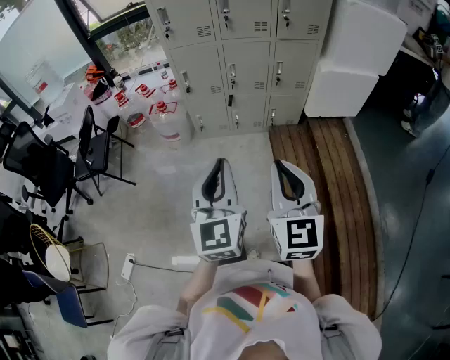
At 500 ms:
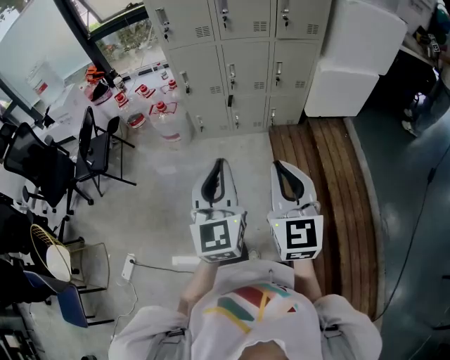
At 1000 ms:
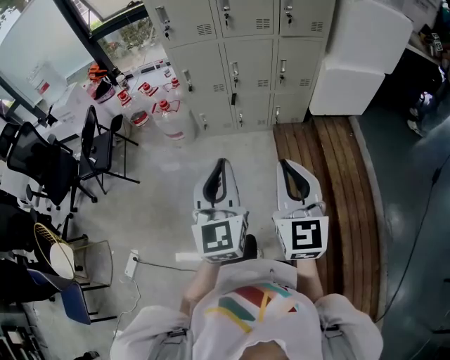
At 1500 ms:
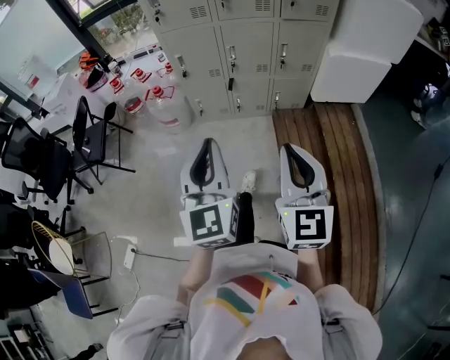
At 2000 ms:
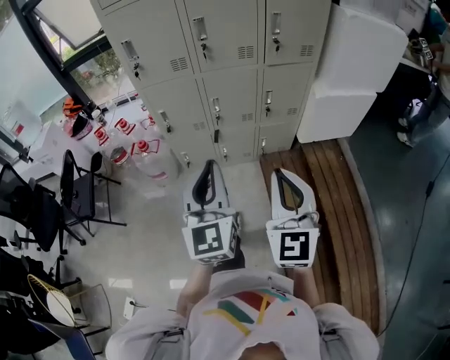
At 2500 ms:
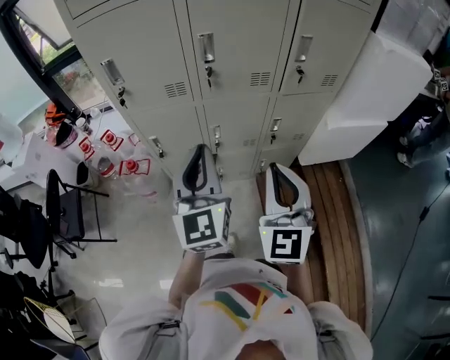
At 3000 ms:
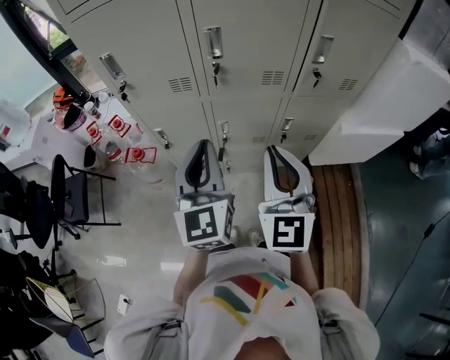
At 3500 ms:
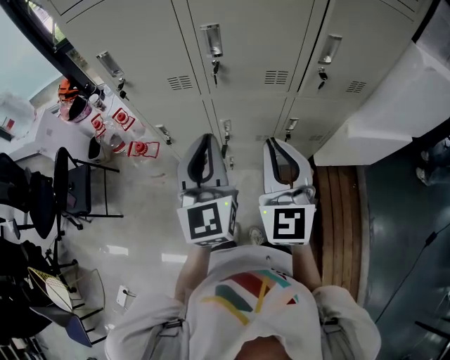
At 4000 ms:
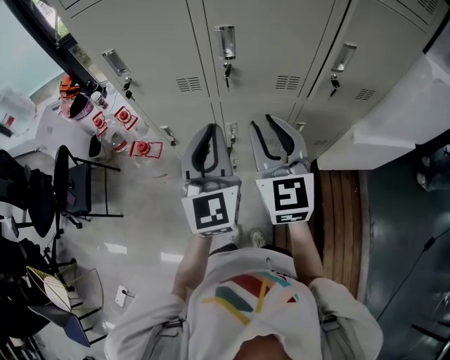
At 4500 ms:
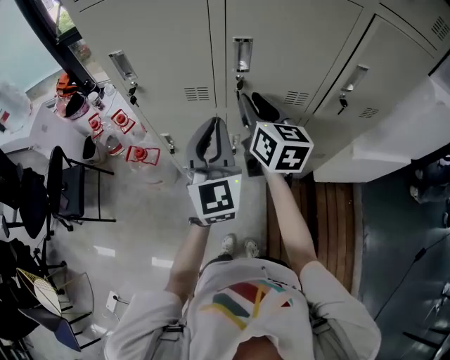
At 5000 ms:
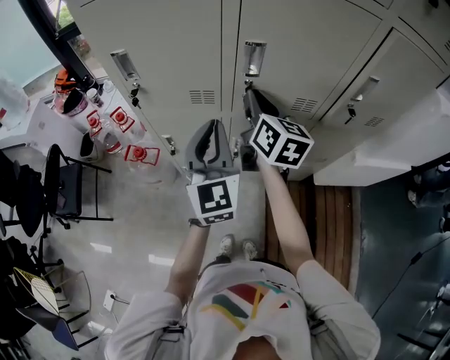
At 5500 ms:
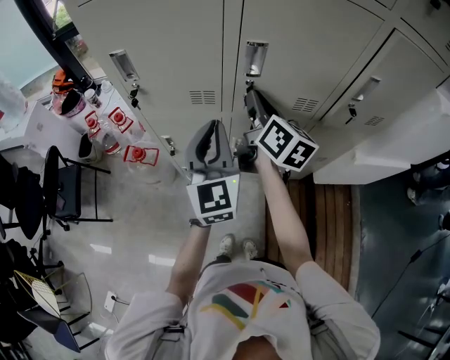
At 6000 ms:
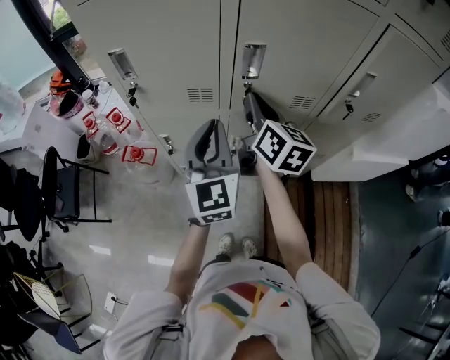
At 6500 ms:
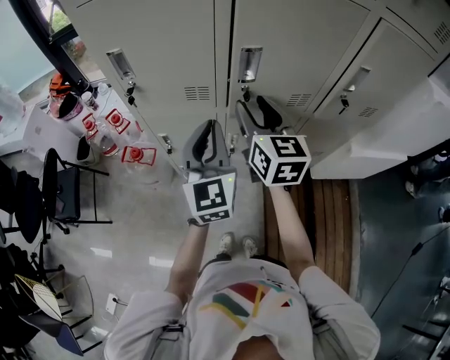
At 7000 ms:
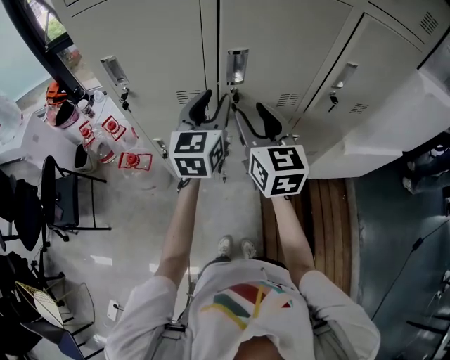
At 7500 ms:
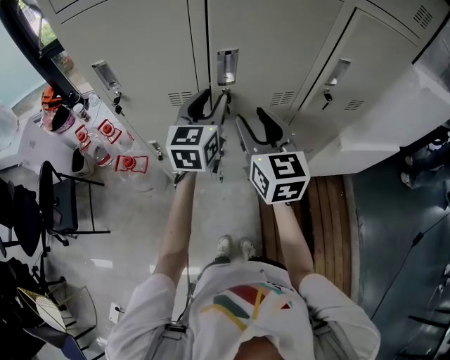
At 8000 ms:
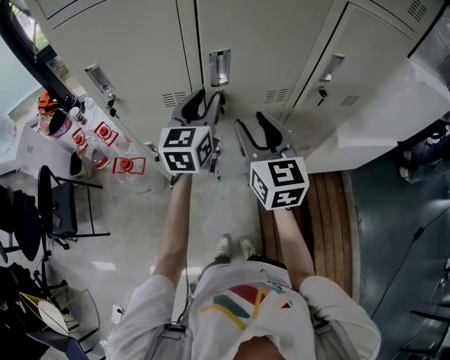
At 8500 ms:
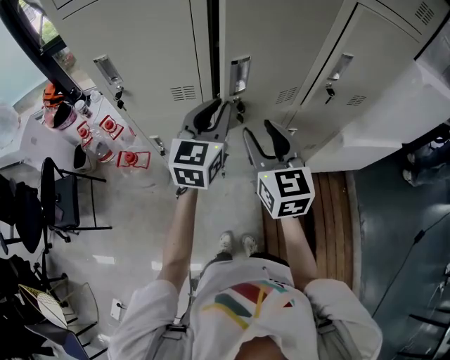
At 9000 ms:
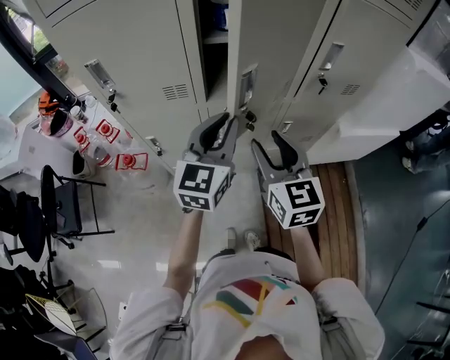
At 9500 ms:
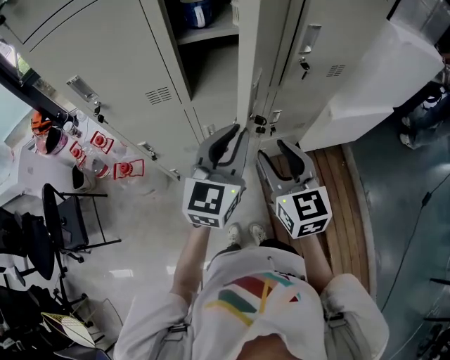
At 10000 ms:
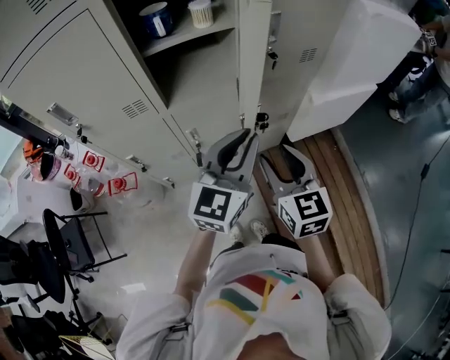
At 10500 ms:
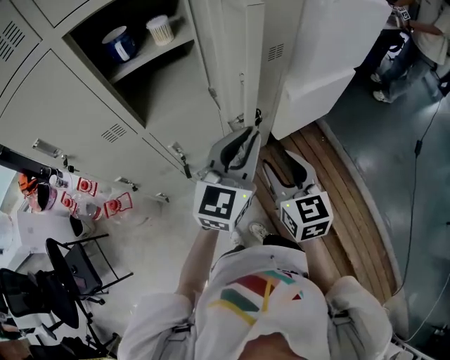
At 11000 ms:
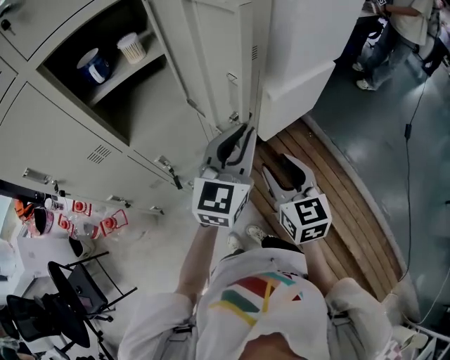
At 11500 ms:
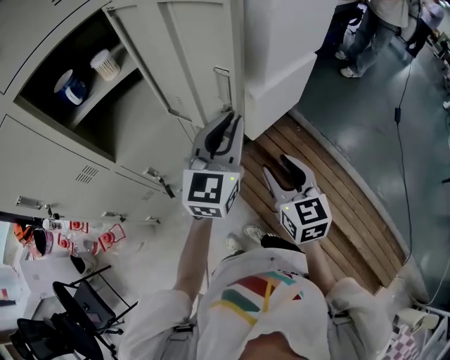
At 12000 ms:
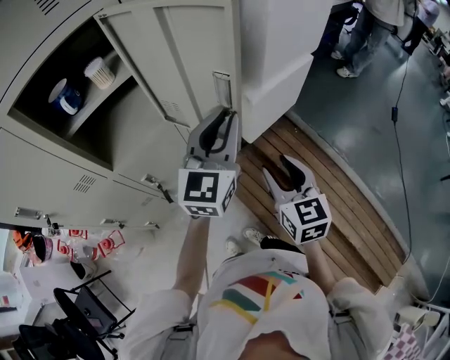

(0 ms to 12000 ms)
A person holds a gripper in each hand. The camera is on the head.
0 ms - 2000 ms: The grippers both shift forward by approximately 20 cm.
2000 ms - 4000 ms: Both grippers travel together forward, some 35 cm. The right gripper opens.
4000 ms - 6000 ms: The right gripper heads forward, covering about 15 cm, and swivels roughly 40 degrees, while the left gripper travels forward by about 10 cm.
6000 ms - 8000 ms: The right gripper travels backward by some 10 cm, turns by about 30 degrees, and opens up. Meanwhile the left gripper heads forward and to the right, covering about 10 cm, rotates approximately 20 degrees, and opens its fingers.
8000 ms - 10000 ms: The right gripper moves to the right, backward and downward, about 20 cm, while the left gripper travels to the right and backward by roughly 25 cm, and swivels about 30 degrees.
10000 ms - 12000 ms: The left gripper shifts approximately 15 cm to the right and forward. Meanwhile the right gripper goes some 15 cm to the right, and turns by roughly 20 degrees.

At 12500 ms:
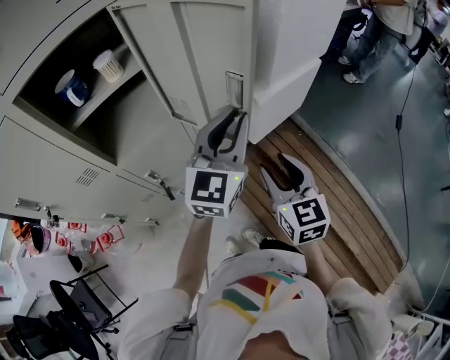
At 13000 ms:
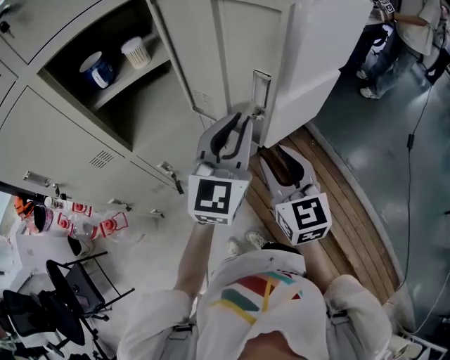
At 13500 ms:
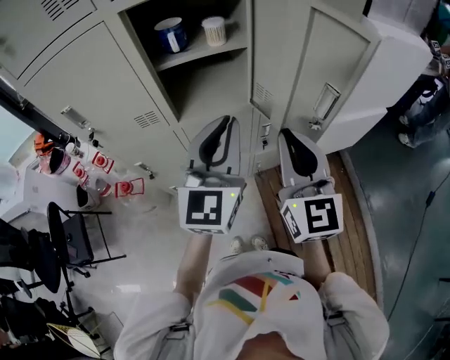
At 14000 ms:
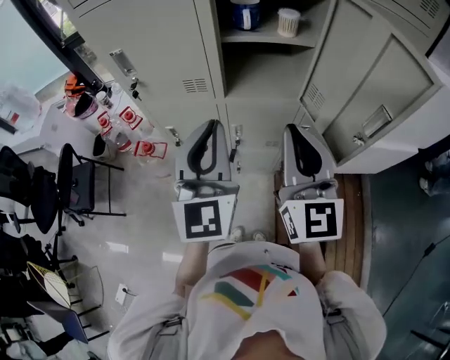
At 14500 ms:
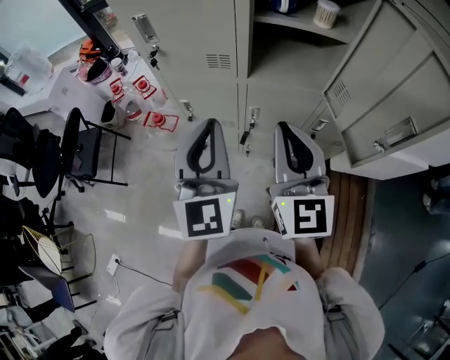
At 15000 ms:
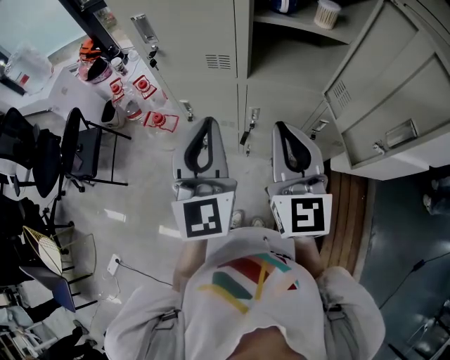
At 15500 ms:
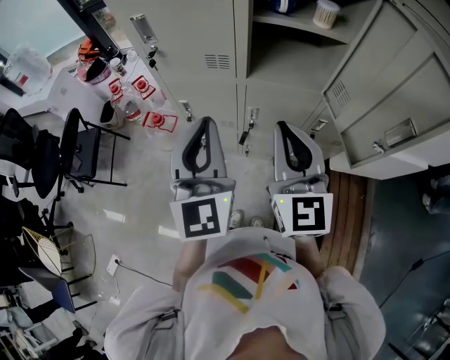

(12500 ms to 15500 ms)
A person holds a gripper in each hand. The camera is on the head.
12500 ms - 14000 ms: The left gripper ends up about 30 cm from where it was, and changes its angle by some 60 degrees; the right gripper ends up approximately 25 cm from where it was, turns by approximately 40 degrees, and closes up.
14000 ms - 15500 ms: Both grippers move to the left, some 5 cm.

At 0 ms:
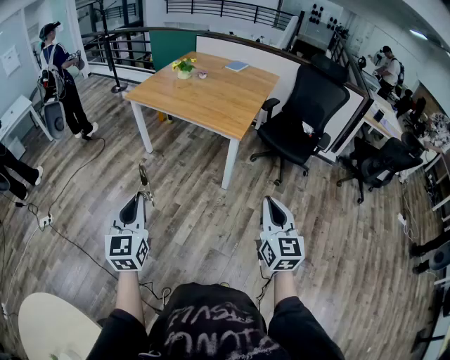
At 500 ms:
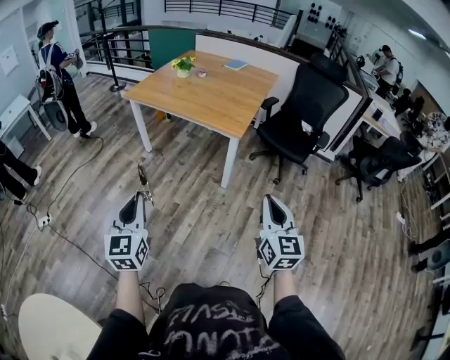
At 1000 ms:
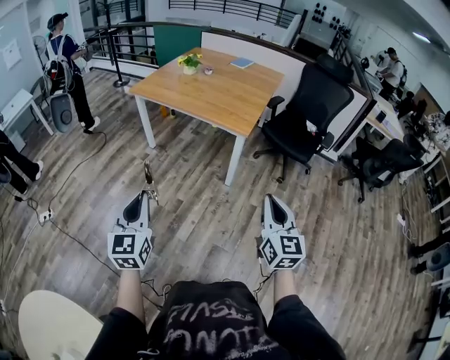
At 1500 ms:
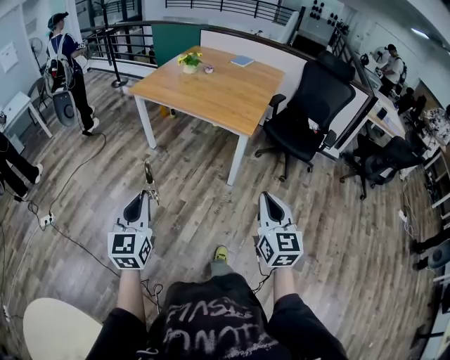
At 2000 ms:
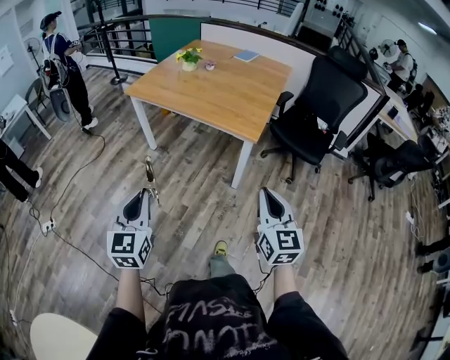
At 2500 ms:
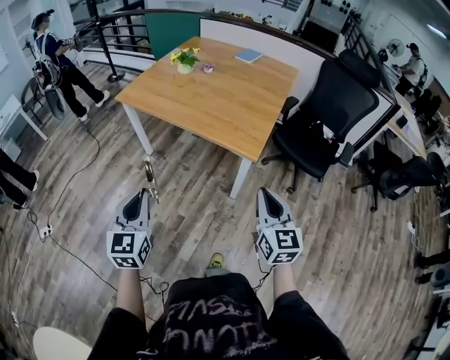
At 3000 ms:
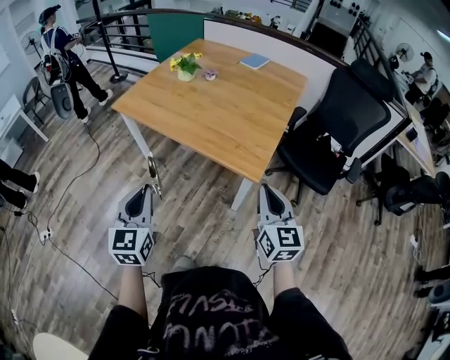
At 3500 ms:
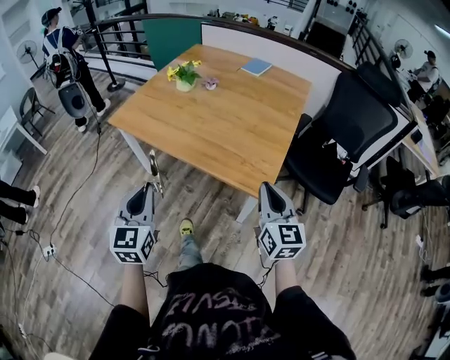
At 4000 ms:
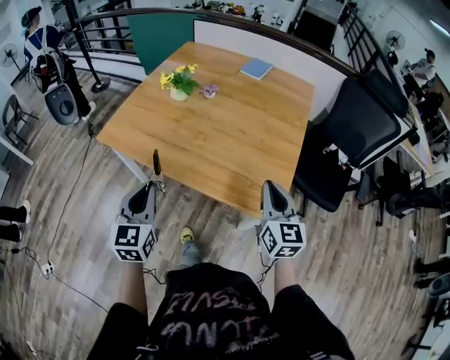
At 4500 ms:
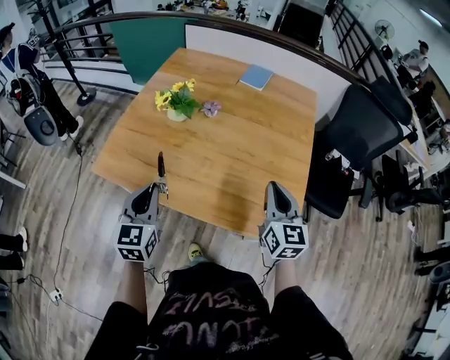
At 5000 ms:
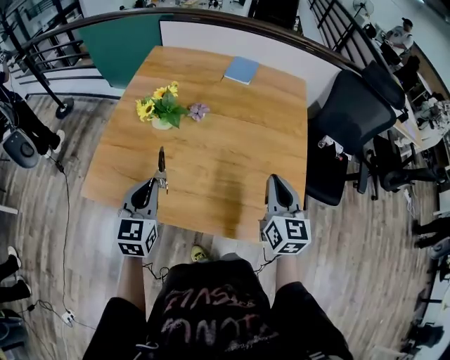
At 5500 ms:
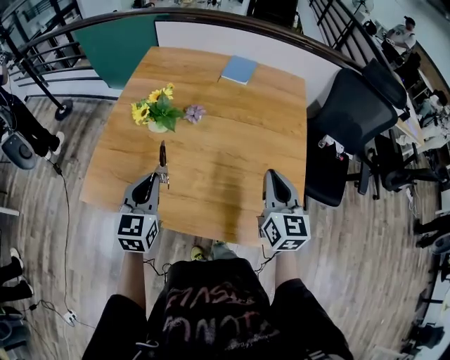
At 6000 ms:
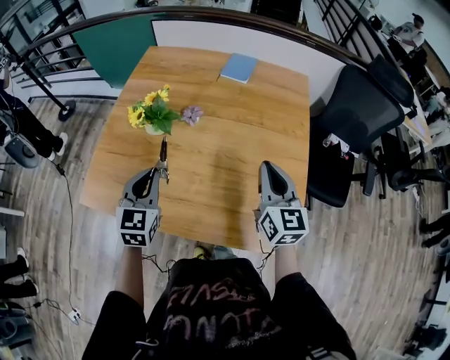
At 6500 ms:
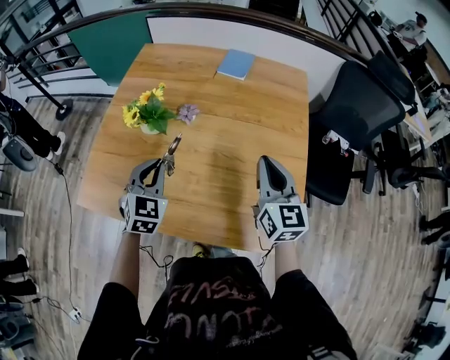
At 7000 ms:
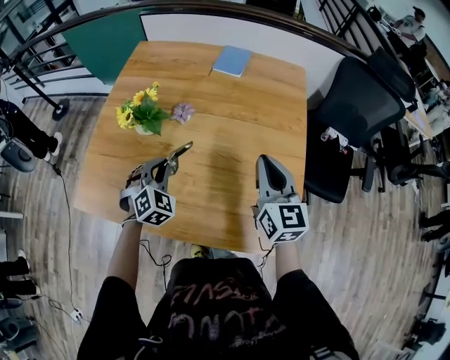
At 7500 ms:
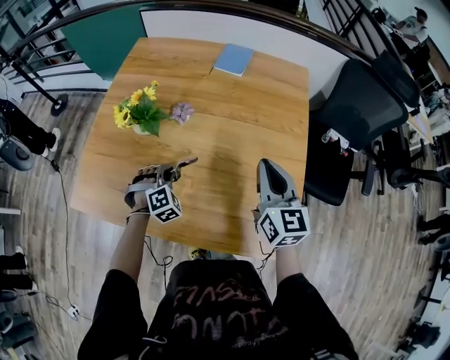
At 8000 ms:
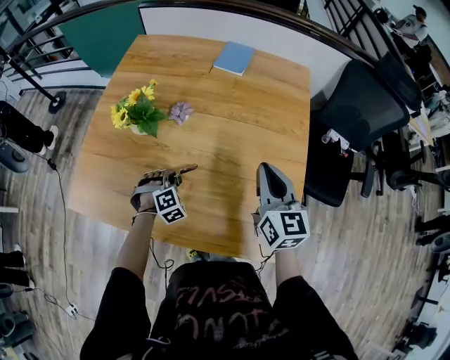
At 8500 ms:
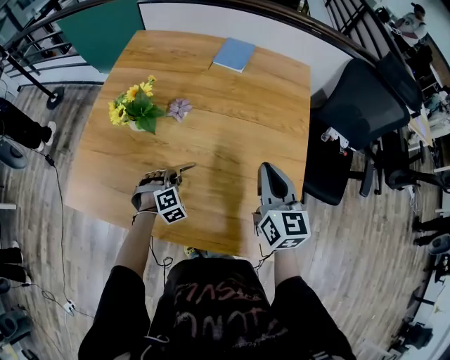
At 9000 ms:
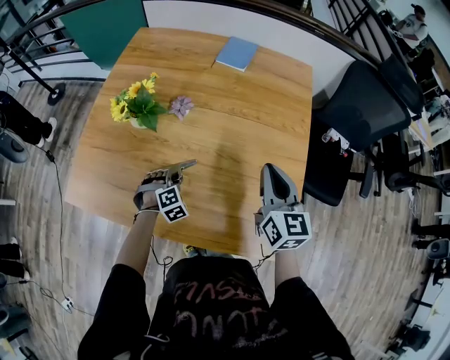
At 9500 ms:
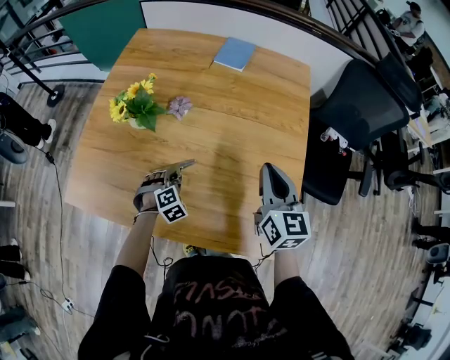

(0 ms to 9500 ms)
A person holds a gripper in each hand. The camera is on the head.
0 ms - 2000 ms: The left gripper heads forward, covering roughly 15 cm. The right gripper moves forward and to the left, some 15 cm.
2000 ms - 4000 ms: The two grippers travel together, forward, approximately 50 cm.
4000 ms - 5500 ms: The two grippers go approximately 25 cm forward.
5500 ms - 7500 ms: The right gripper is displaced forward by some 5 cm; the left gripper goes some 20 cm downward, forward and to the right, and rotates around the line of its fingers by approximately 60 degrees, clockwise from behind.
7500 ms - 9500 ms: The left gripper shifts about 10 cm downward, and opens.

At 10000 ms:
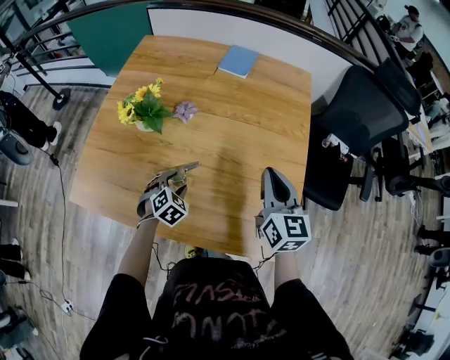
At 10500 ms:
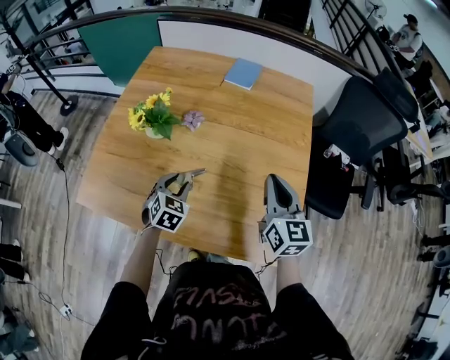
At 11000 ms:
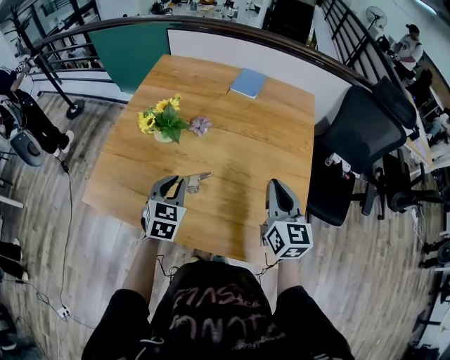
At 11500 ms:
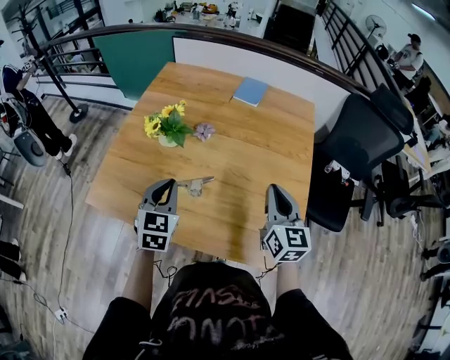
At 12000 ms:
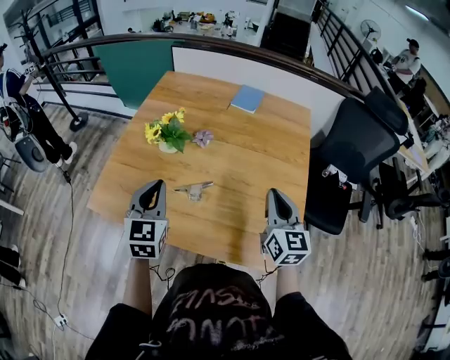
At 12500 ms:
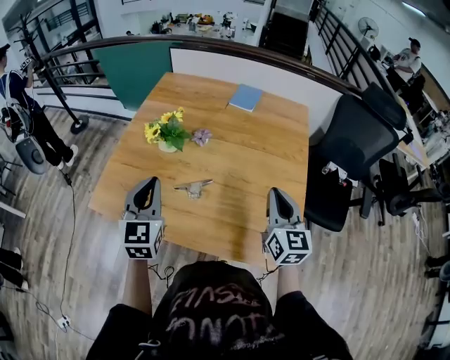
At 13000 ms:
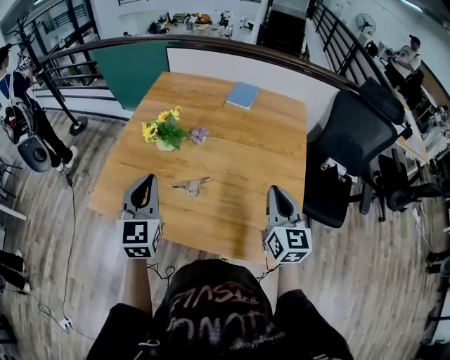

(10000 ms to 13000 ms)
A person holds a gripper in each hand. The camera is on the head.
10000 ms - 11500 ms: The left gripper shifts about 20 cm upward, tilts its fingers some 30 degrees upward, and closes up. The right gripper ends up roughly 5 cm from where it was.
11500 ms - 13000 ms: The left gripper heads upward, covering some 10 cm.
